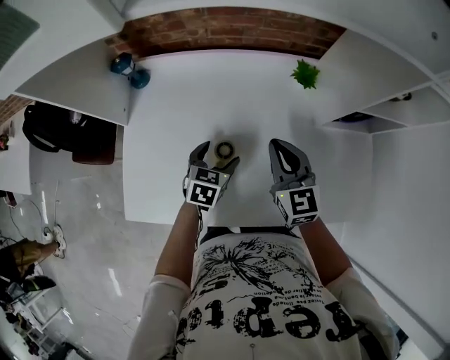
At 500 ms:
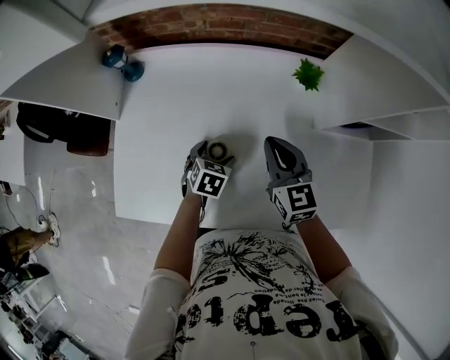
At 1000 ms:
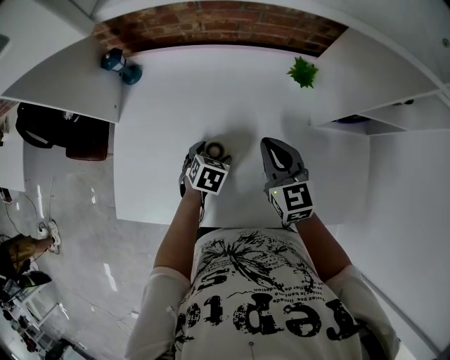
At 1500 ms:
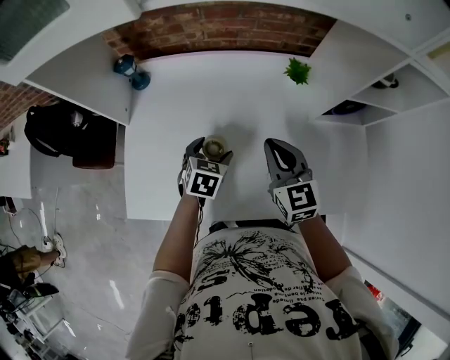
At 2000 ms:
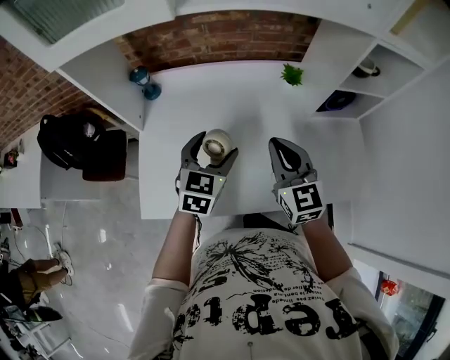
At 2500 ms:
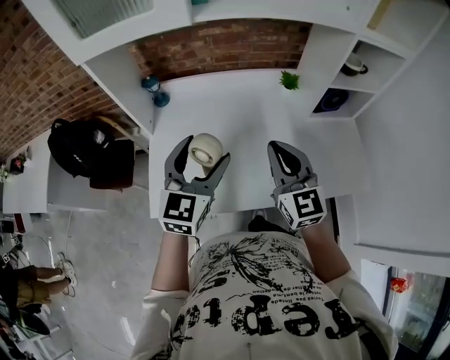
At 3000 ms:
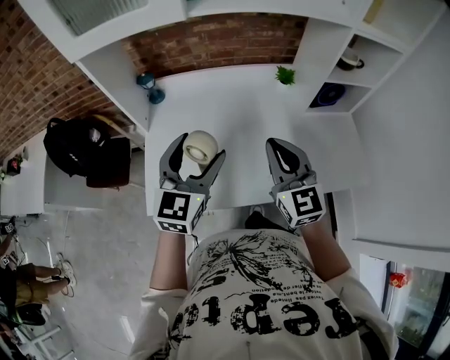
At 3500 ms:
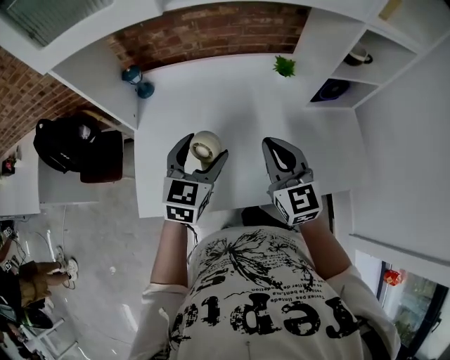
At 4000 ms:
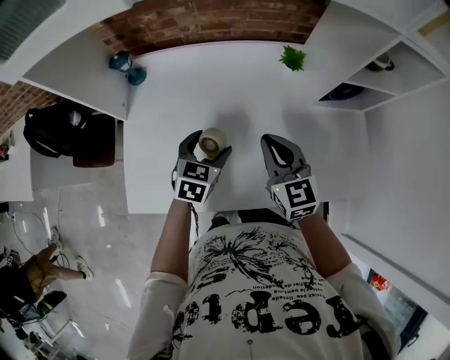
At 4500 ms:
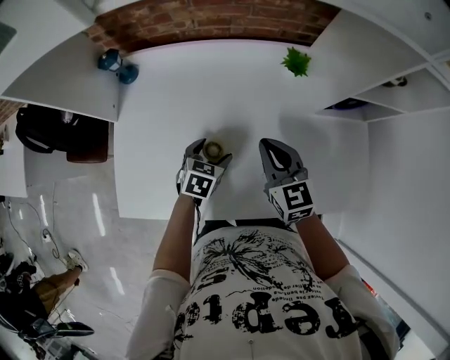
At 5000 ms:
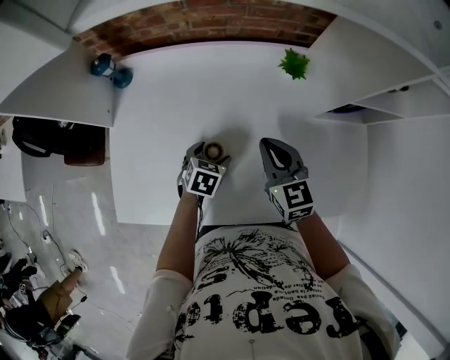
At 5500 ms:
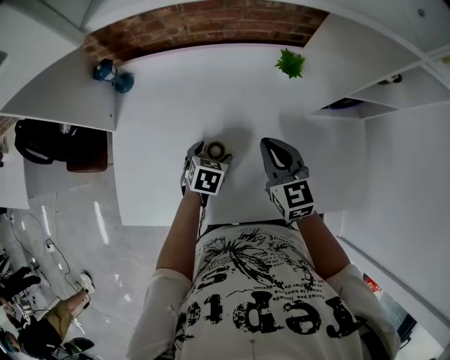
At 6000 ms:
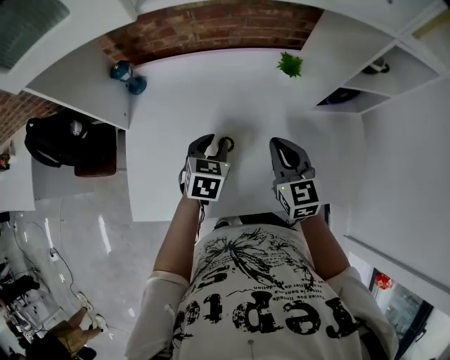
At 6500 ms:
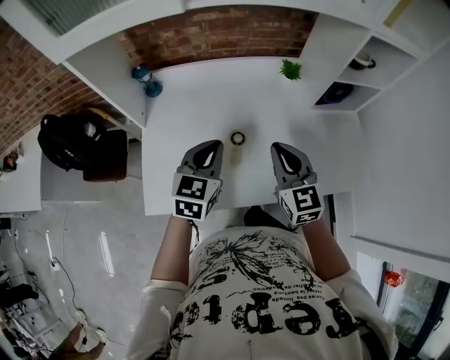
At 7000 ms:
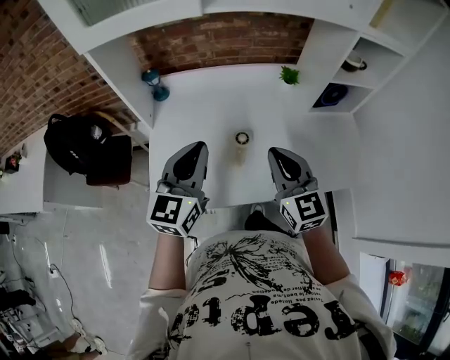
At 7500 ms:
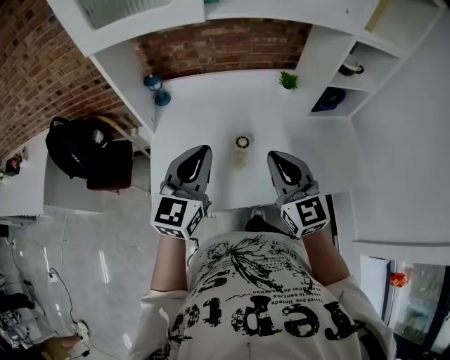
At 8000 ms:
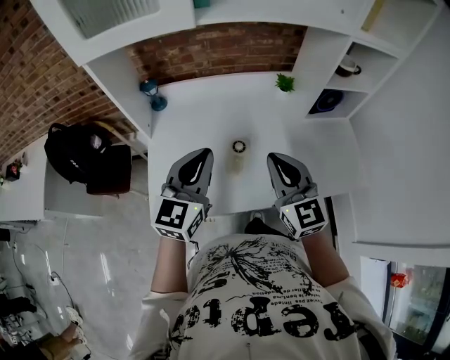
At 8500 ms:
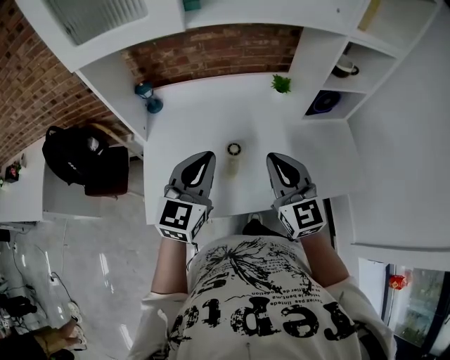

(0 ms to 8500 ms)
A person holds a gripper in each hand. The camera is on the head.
0 ms - 2000 ms: The right gripper travels backward and upward by approximately 15 cm, while the left gripper travels upward and backward by about 20 cm, and changes its angle by some 20 degrees.
2000 ms - 4000 ms: The left gripper travels downward by roughly 10 cm. Meanwhile the right gripper moves downward, roughly 5 cm.
4000 ms - 6500 ms: The right gripper heads backward, covering about 10 cm, while the left gripper goes about 15 cm upward and backward, and closes up.
6500 ms - 8500 ms: Both grippers travel together upward and backward, about 10 cm.

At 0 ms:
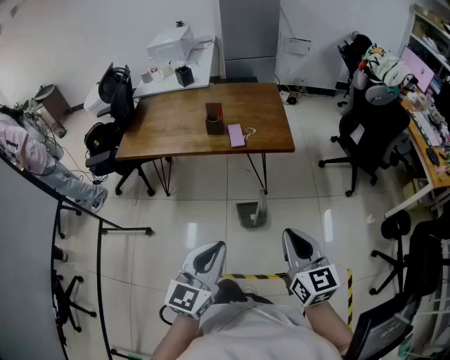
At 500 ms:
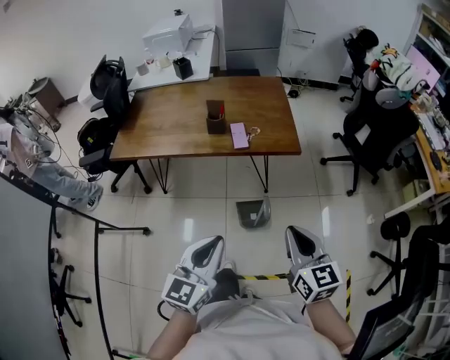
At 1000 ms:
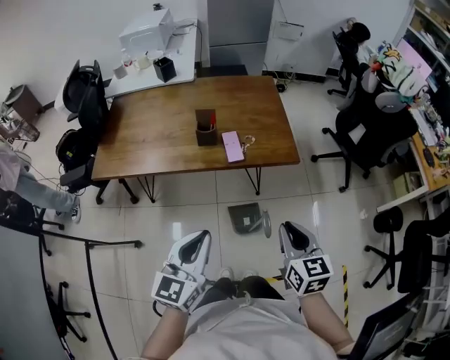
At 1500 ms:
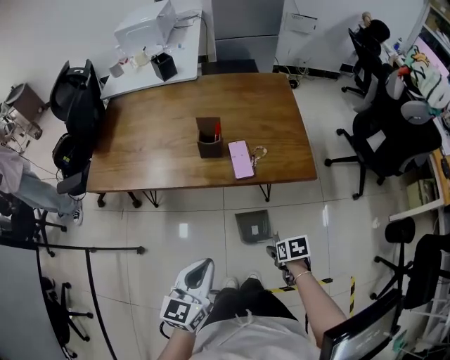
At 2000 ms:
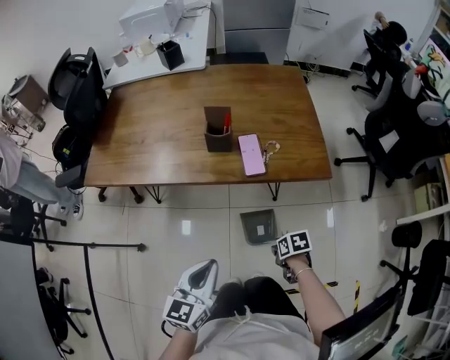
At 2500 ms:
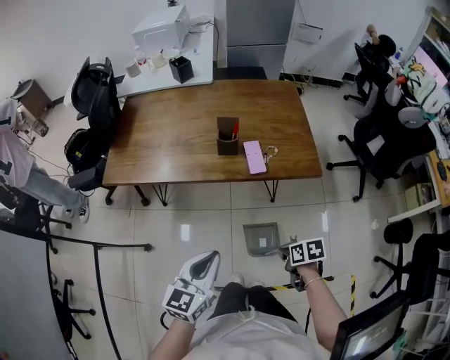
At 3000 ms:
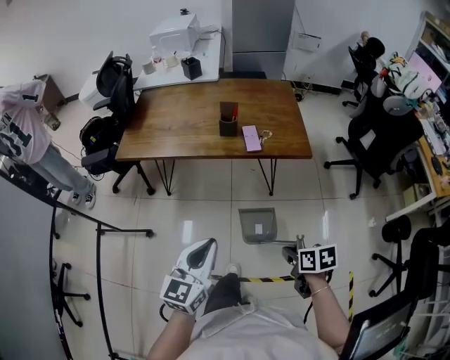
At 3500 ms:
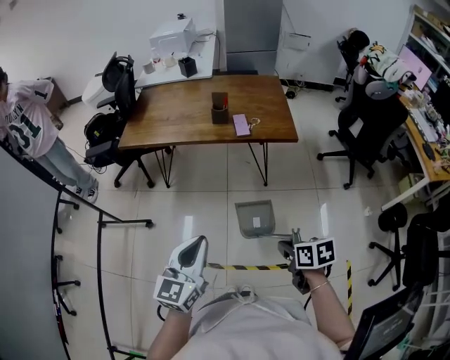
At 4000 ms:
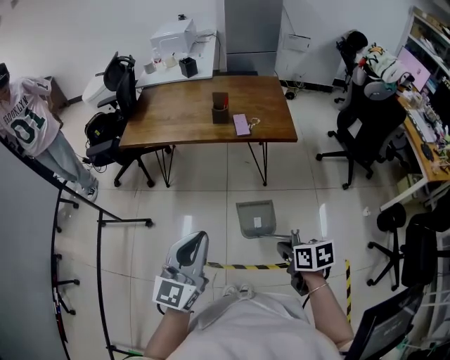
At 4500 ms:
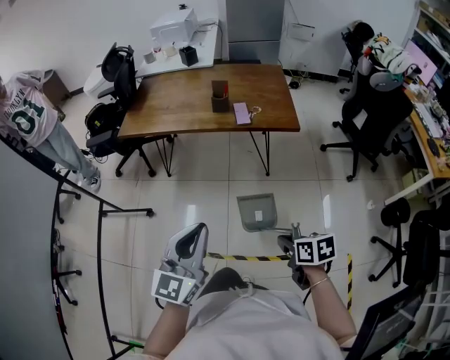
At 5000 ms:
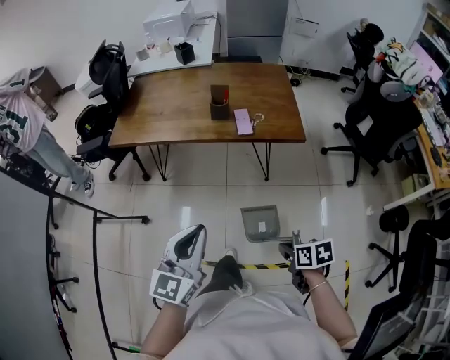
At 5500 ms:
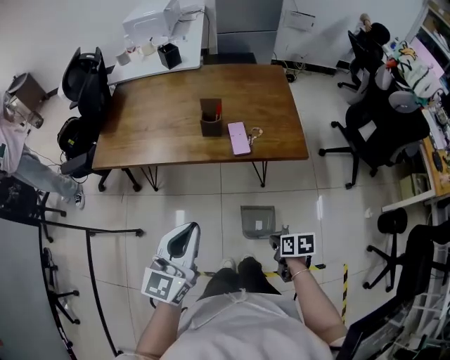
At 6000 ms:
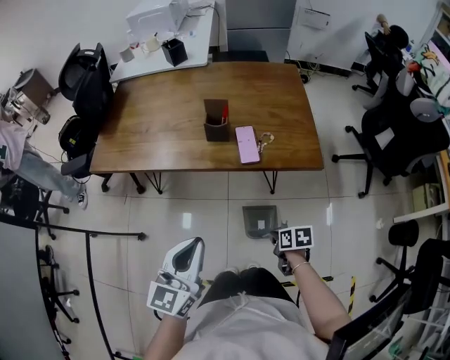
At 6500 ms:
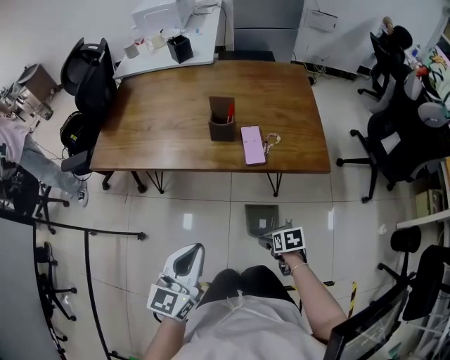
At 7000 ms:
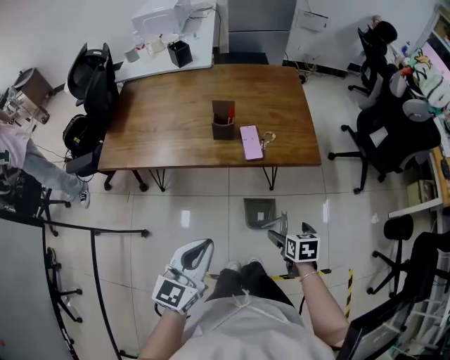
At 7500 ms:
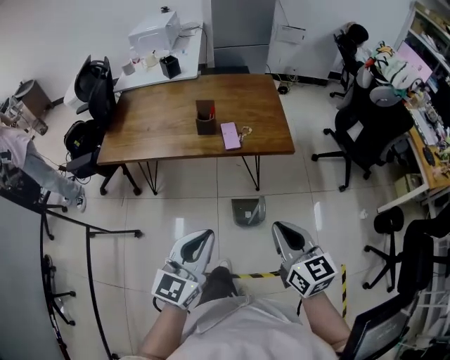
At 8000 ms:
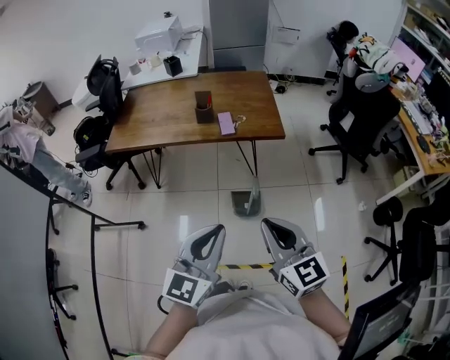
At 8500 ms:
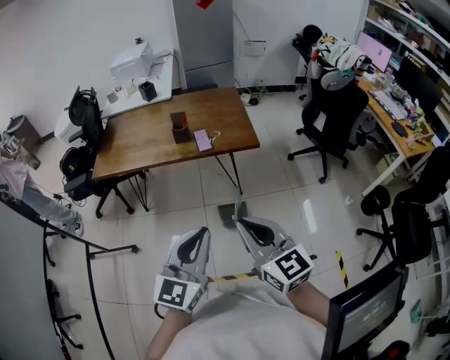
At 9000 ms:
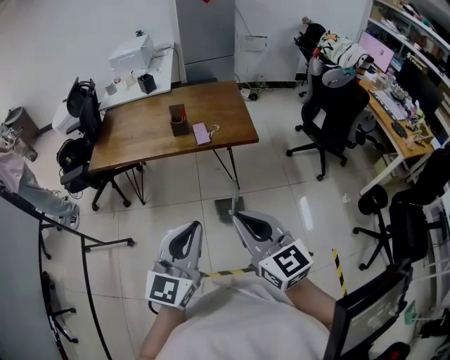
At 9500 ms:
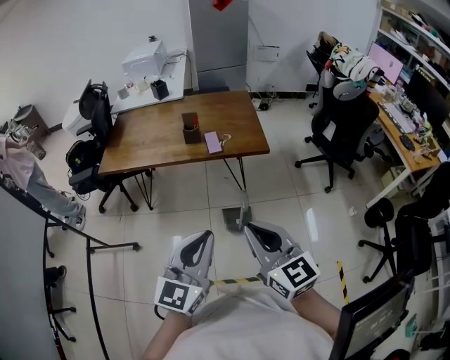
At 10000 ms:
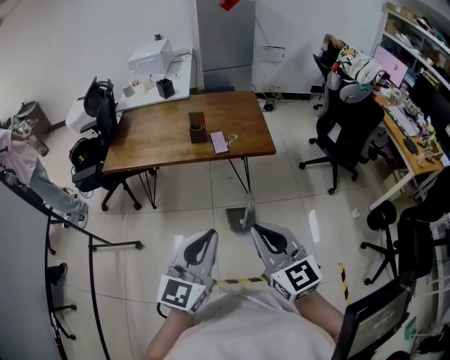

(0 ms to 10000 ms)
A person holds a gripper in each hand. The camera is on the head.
0 ms - 2000 ms: The right gripper is displaced downward by roughly 40 cm, tips its fingers downward by about 60 degrees, and opens, then closes again. The left gripper ends up roughly 35 cm from where it was.
2000 ms - 4000 ms: Both grippers move backward and upward, some 40 cm. The right gripper swivels roughly 30 degrees. The left gripper turns by about 30 degrees.
4000 ms - 6000 ms: Both grippers move forward and downward, approximately 35 cm.
6000 ms - 8000 ms: The left gripper heads backward and upward, covering roughly 30 cm, while the right gripper is displaced upward and backward by roughly 50 cm, angles its fingers upward, by some 50 degrees, and opens and closes again.
8000 ms - 10000 ms: The grippers make only small movements.

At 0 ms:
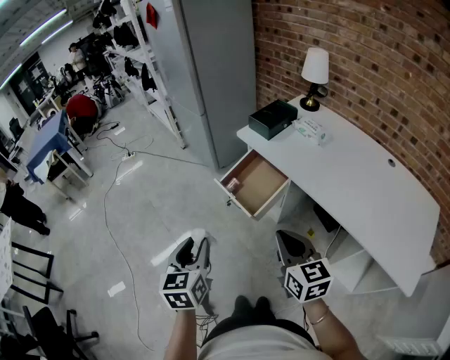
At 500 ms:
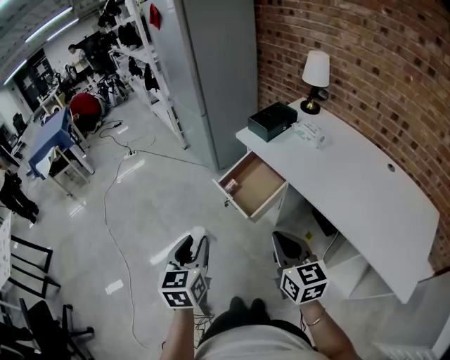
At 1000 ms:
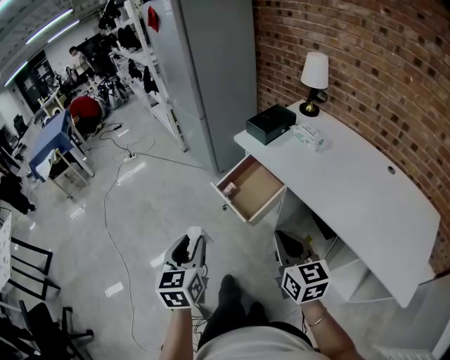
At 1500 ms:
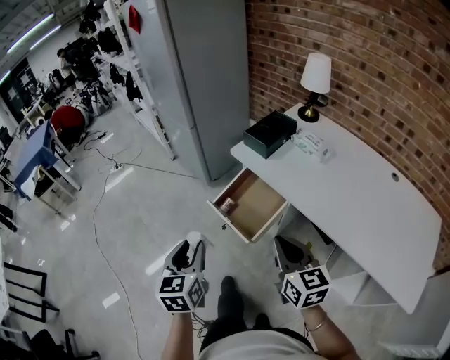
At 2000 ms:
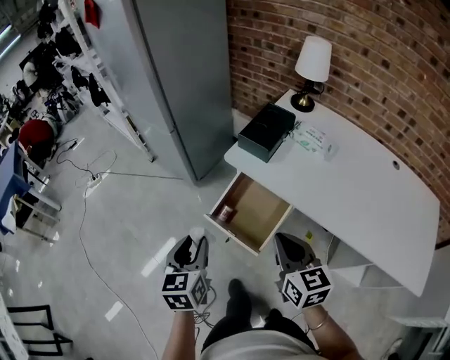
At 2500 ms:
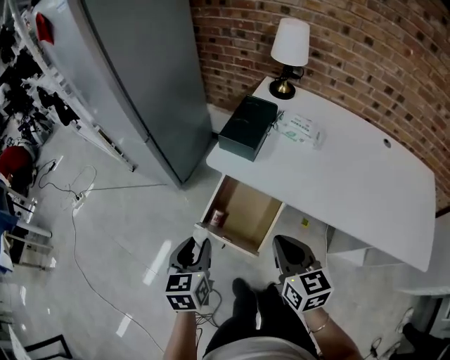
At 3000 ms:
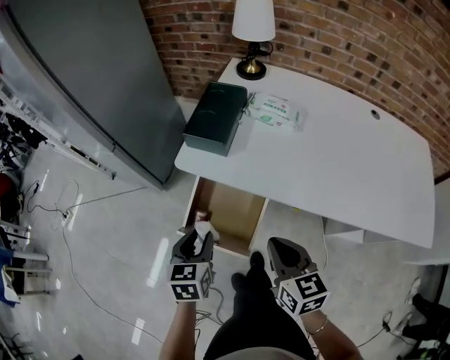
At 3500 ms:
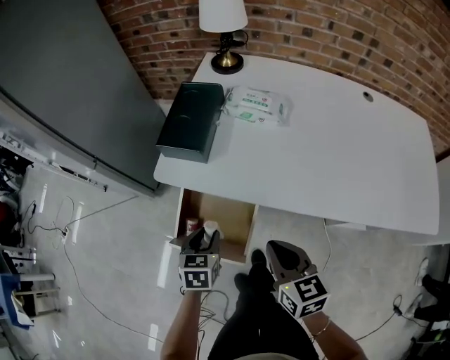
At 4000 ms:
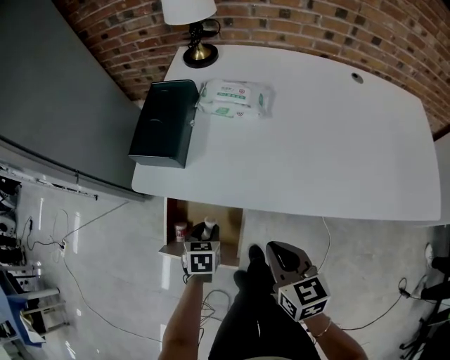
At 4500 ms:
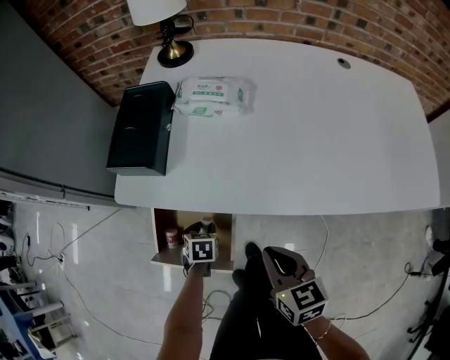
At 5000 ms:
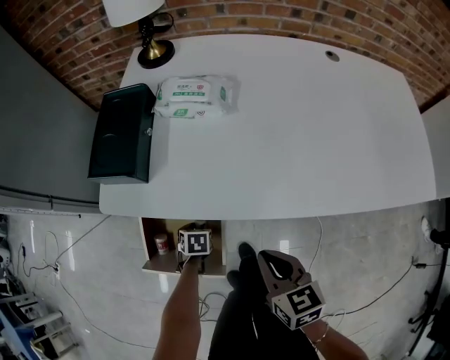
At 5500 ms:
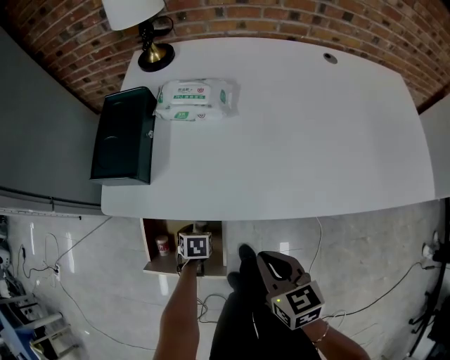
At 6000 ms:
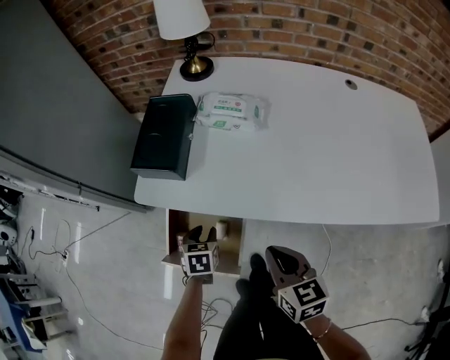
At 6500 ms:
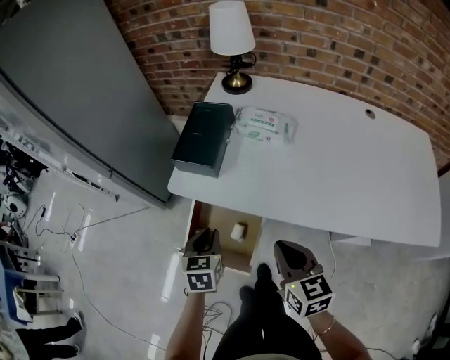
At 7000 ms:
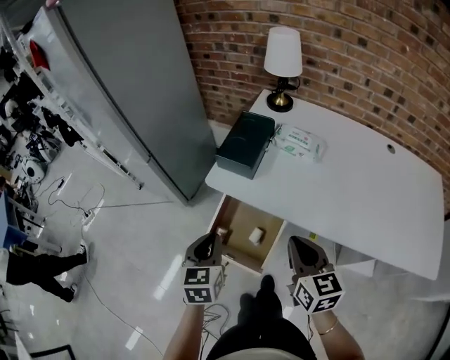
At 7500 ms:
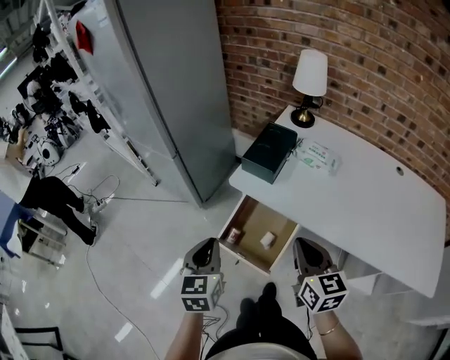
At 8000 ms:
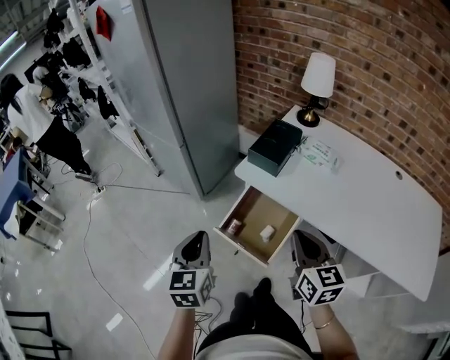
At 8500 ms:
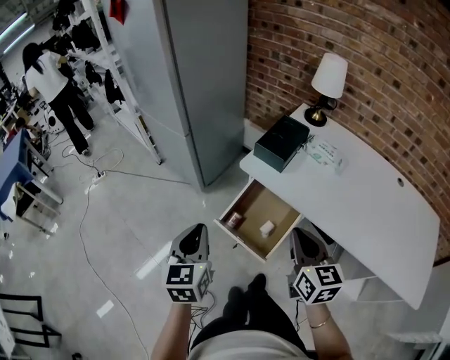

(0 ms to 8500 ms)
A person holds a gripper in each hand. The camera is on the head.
0 ms - 2000 ms: The grippers both shift forward by roughly 30 cm.
2000 ms - 4000 ms: The right gripper goes approximately 20 cm downward, and rotates some 30 degrees; the left gripper moves downward, roughly 30 cm, and rotates about 50 degrees.
4000 ms - 6500 ms: The right gripper moves upward, roughly 5 cm. Meanwhile the left gripper goes approximately 15 cm upward.
6500 ms - 8500 ms: The left gripper is displaced upward, to the left and backward by roughly 35 cm, and turns by about 30 degrees. The right gripper goes some 20 cm upward, to the left and backward.
